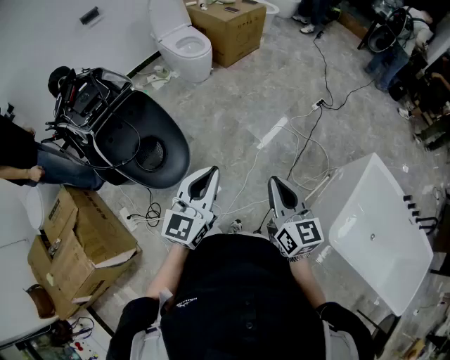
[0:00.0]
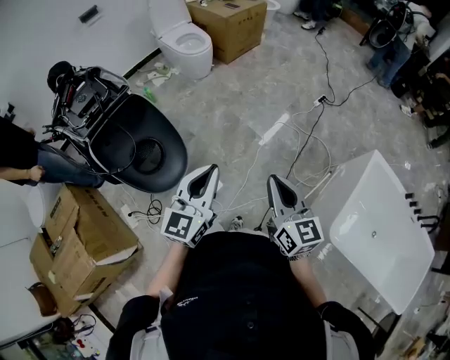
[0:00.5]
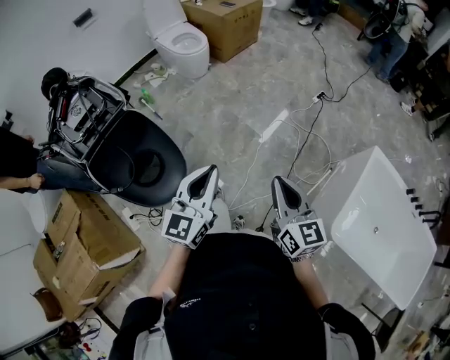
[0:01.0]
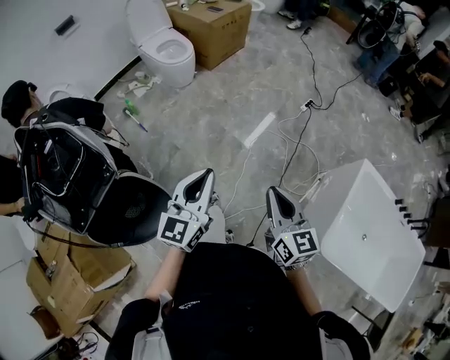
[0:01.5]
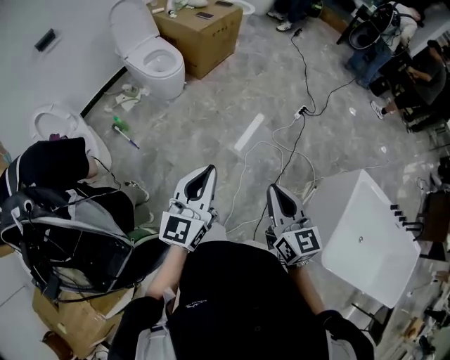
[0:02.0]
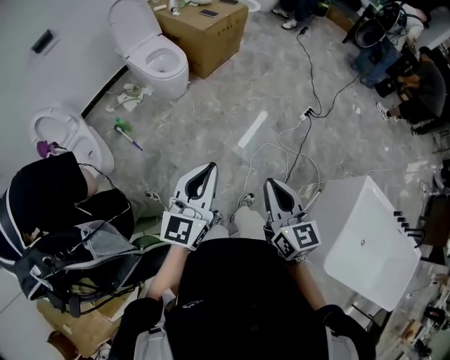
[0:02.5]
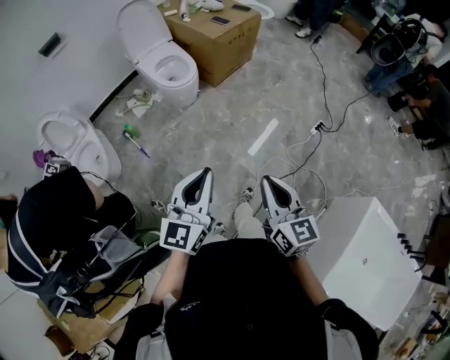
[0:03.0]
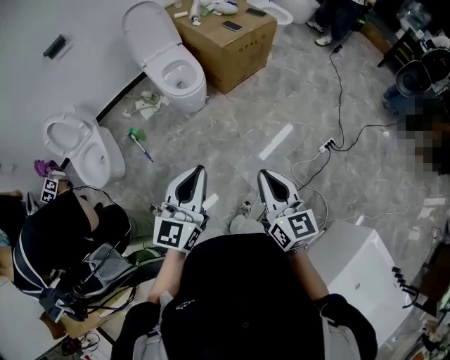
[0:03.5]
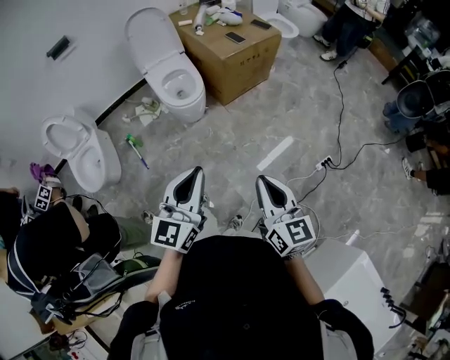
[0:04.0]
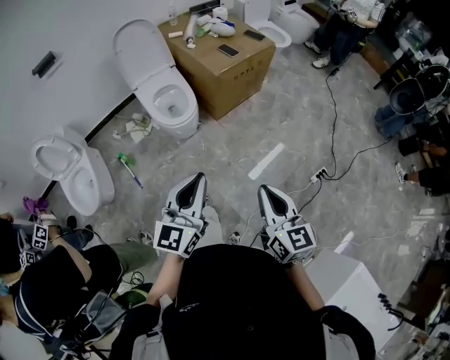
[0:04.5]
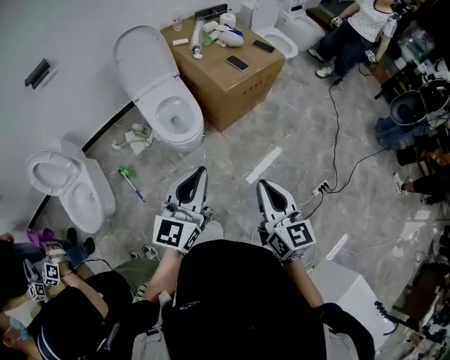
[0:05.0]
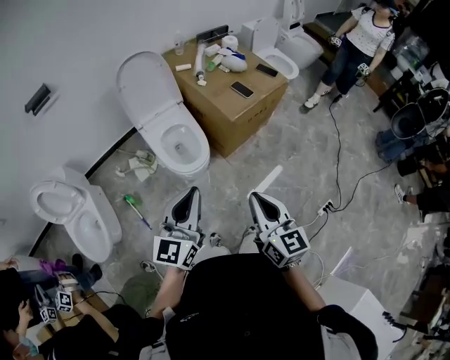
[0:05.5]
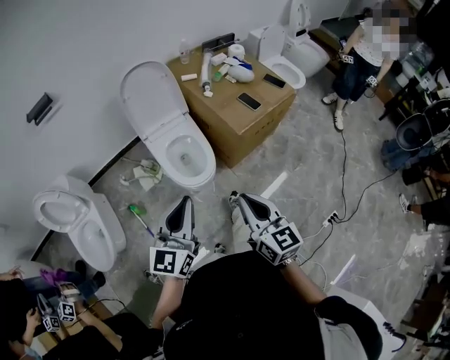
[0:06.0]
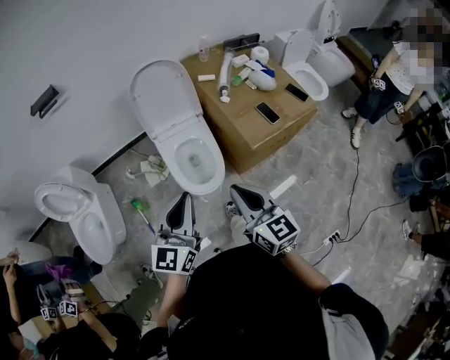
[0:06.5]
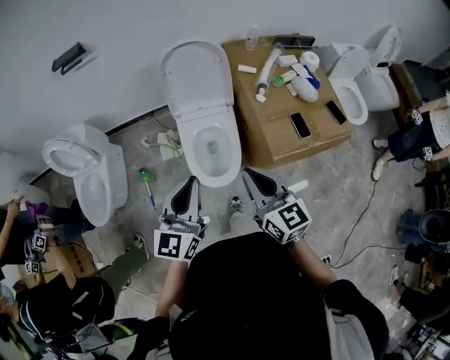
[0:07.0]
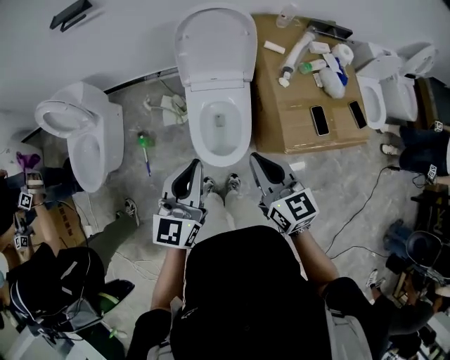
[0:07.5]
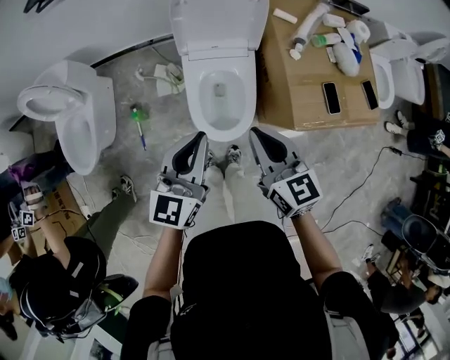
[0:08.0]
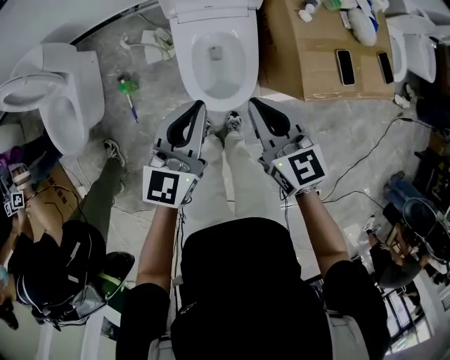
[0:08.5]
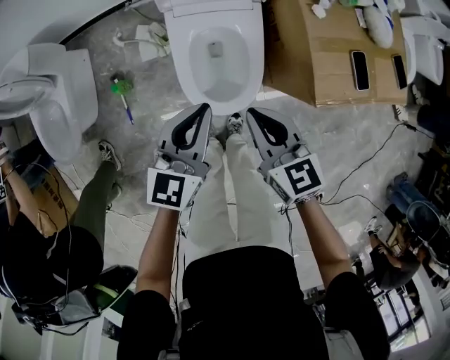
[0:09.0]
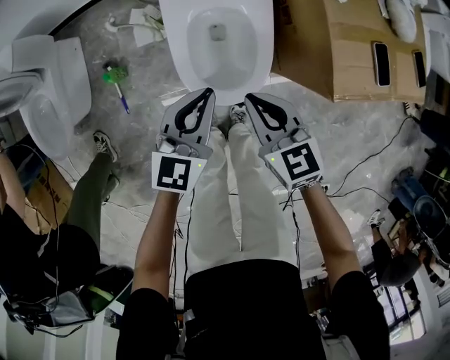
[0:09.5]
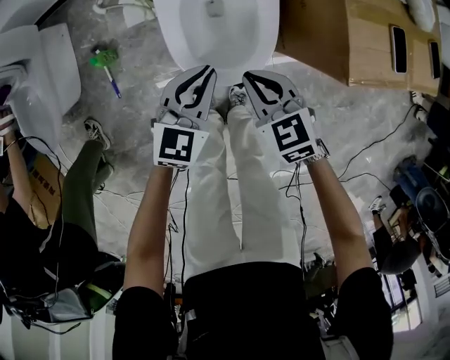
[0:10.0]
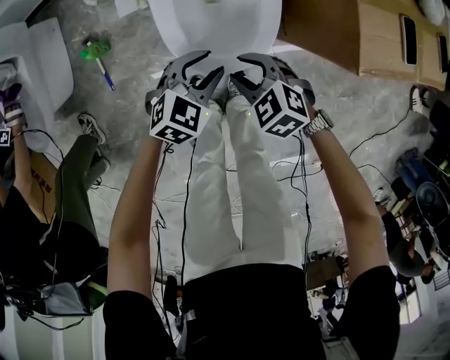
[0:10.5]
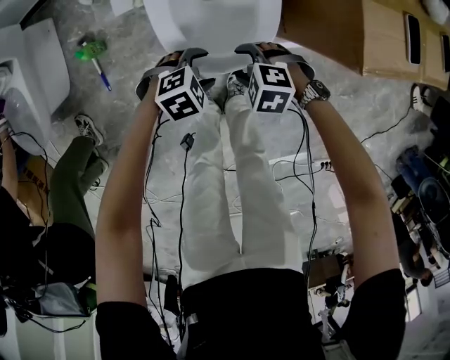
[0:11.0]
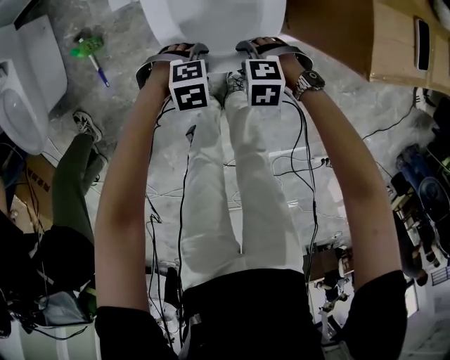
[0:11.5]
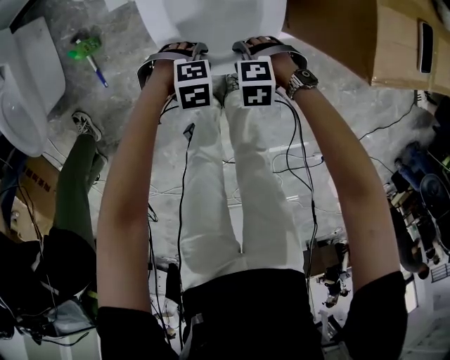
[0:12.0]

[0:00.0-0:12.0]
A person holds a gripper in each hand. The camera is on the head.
0:00.0 to 0:02.0: Both grippers travel together forward, about 25 cm.
0:02.0 to 0:04.0: Both grippers travel together forward, roughly 35 cm.
0:04.0 to 0:06.0: Both grippers are carried forward and to the left, approximately 40 cm.
0:06.0 to 0:08.0: The left gripper ends up roughly 30 cm from where it was, and turns by about 30 degrees; the right gripper ends up some 35 cm from where it was, and turns by roughly 30 degrees.
0:08.0 to 0:10.0: The two grippers go some 35 cm downward. The right gripper swivels approximately 30 degrees, while the left gripper swivels roughly 30 degrees.
0:10.0 to 0:12.0: The grippers both shift downward by about 25 cm. The left gripper points its fingers about 40 degrees further downward, and opens its fingers; the right gripper angles its fingers downward, by roughly 30 degrees, and opens.

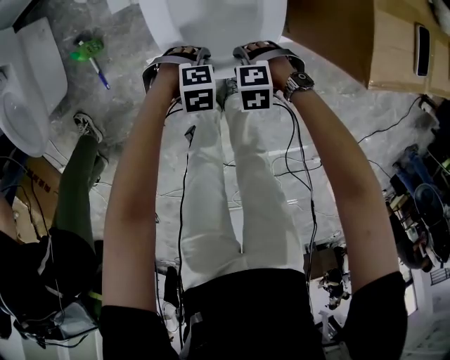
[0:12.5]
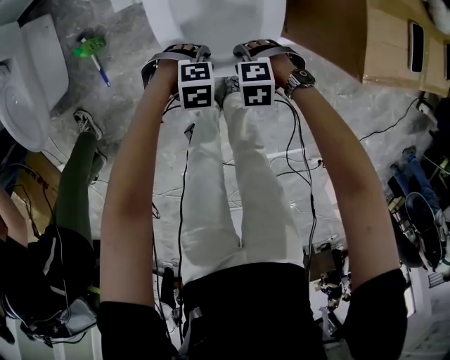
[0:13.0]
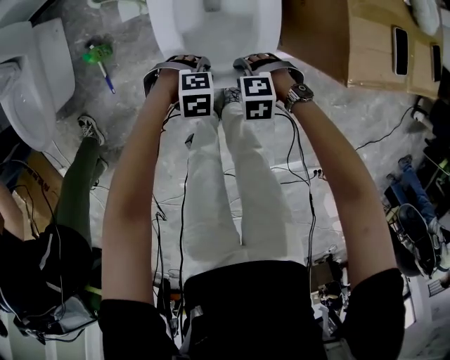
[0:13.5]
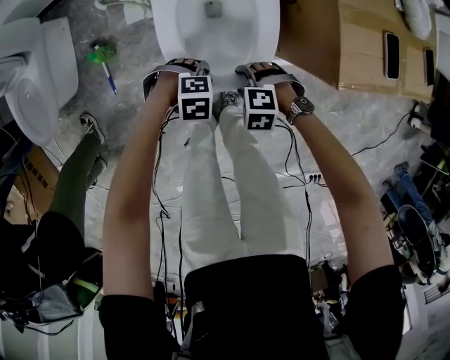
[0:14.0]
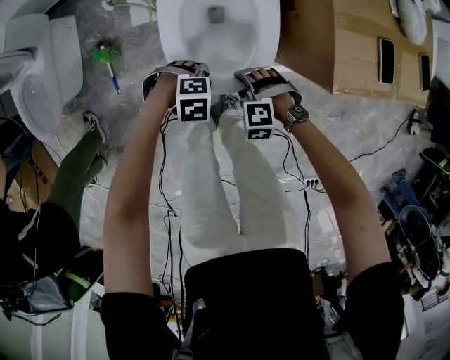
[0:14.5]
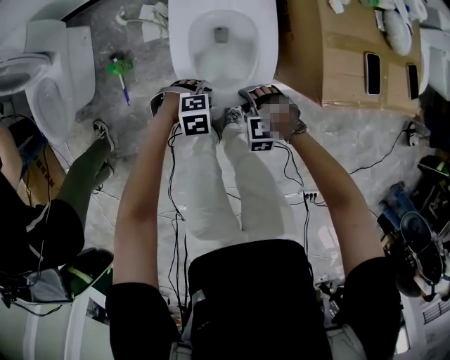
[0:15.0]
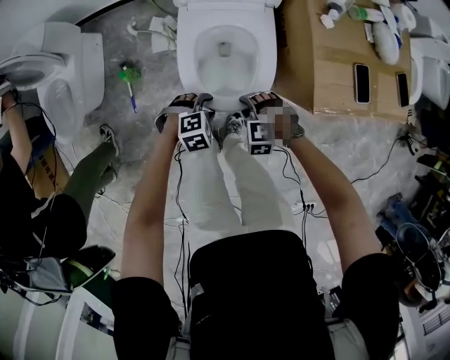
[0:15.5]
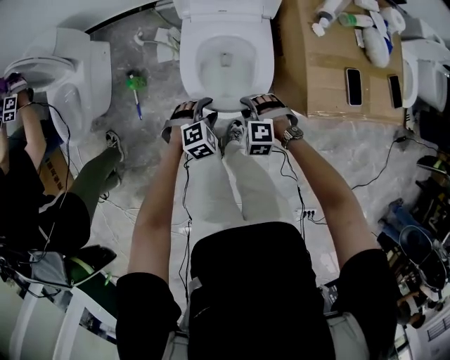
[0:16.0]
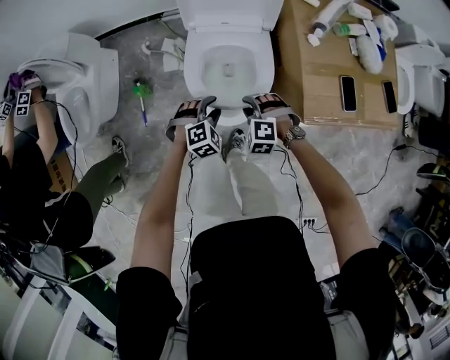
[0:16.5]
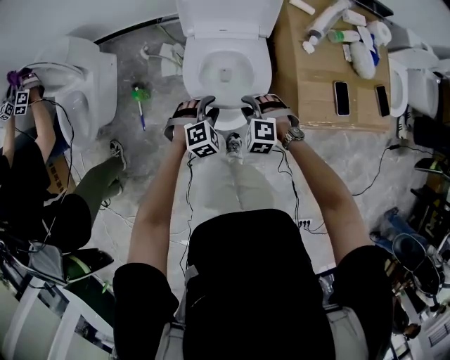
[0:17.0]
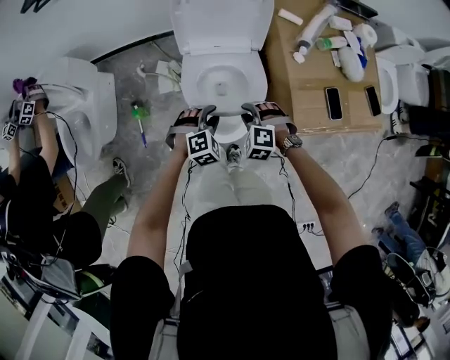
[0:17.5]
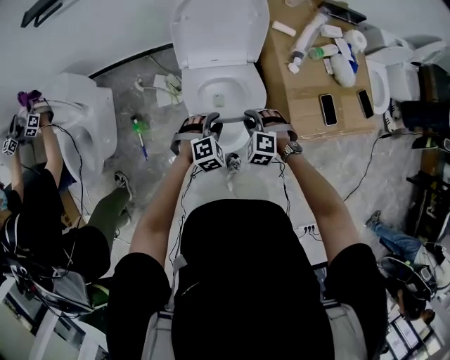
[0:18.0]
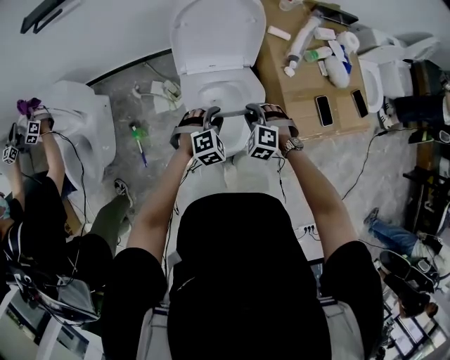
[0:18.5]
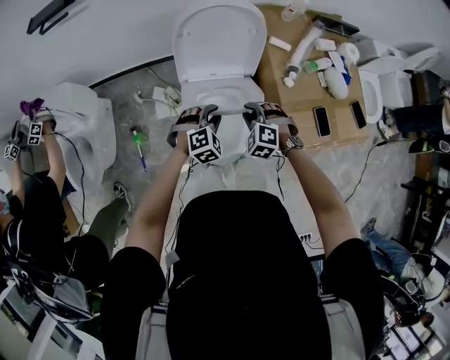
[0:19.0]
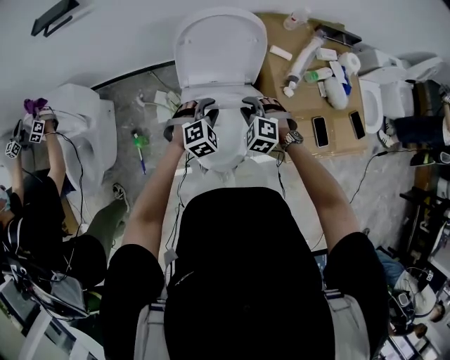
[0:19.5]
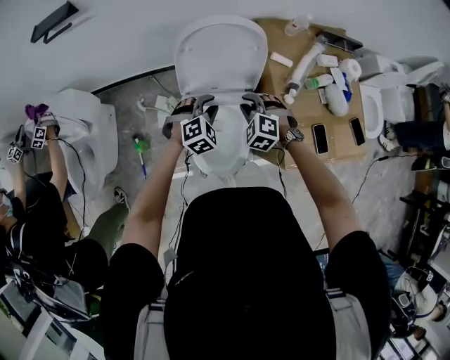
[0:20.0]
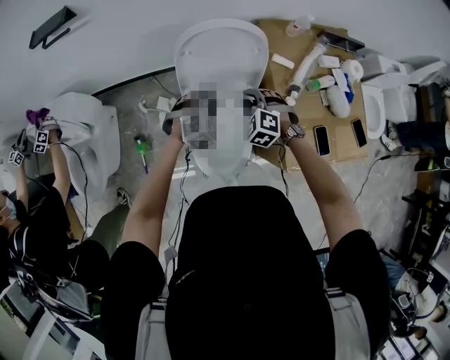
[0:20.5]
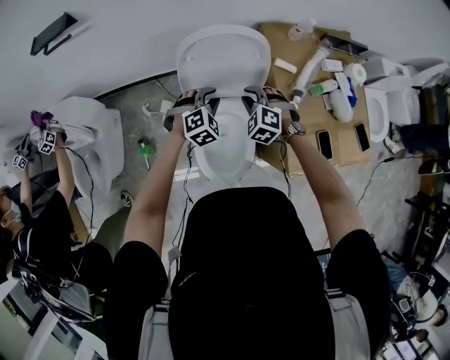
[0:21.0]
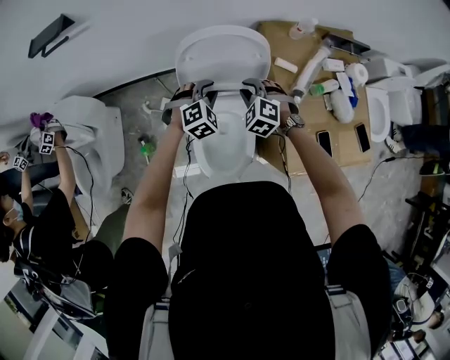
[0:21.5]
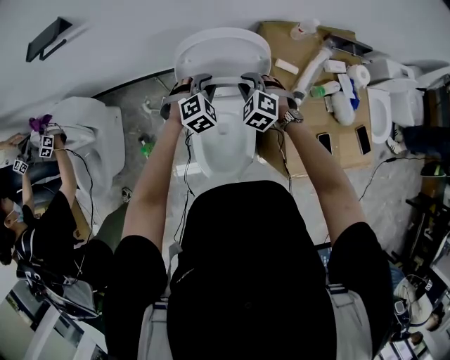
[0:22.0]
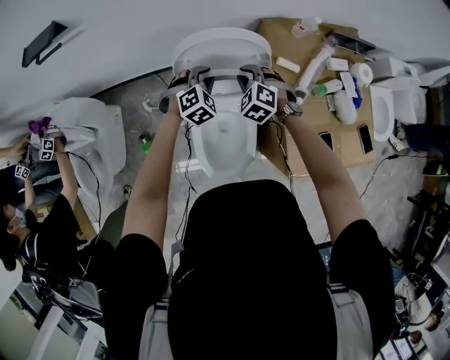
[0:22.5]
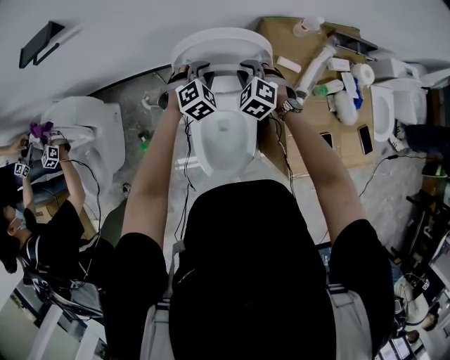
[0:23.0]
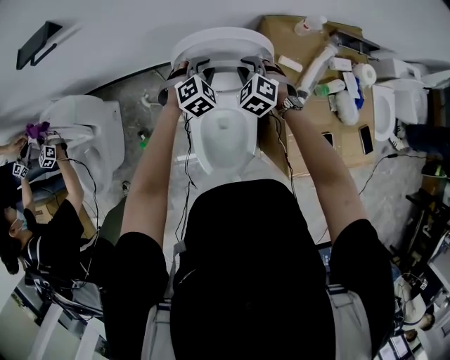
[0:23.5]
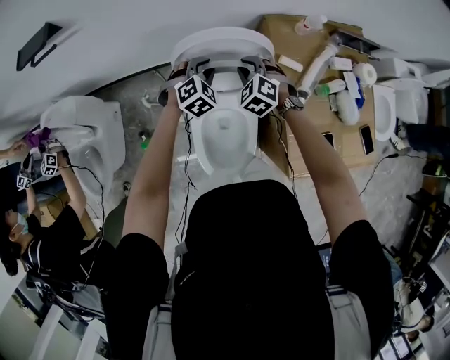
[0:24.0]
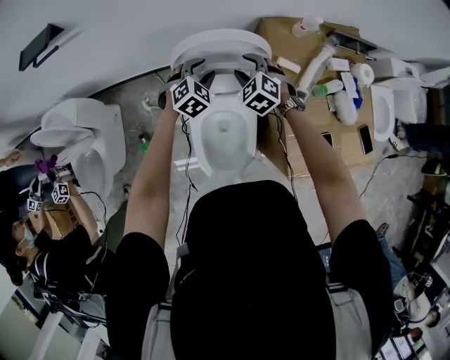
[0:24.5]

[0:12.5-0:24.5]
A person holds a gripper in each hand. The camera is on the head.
0:12.5 to 0:14.5: Both grippers travel together upward, some 10 cm. The right gripper turns by roughly 20 degrees.
0:14.5 to 0:16.5: Both grippers travel together upward, about 15 cm. The right gripper closes; the left gripper swivels approximately 40 degrees.
0:16.5 to 0:18.5: The two grippers go some 15 cm forward and upward.
0:18.5 to 0:20.5: The grippers both shift forward and upward by roughly 15 cm.
0:20.5 to 0:22.5: Both grippers move forward, some 10 cm.
0:22.5 to 0:24.5: The right gripper opens up.

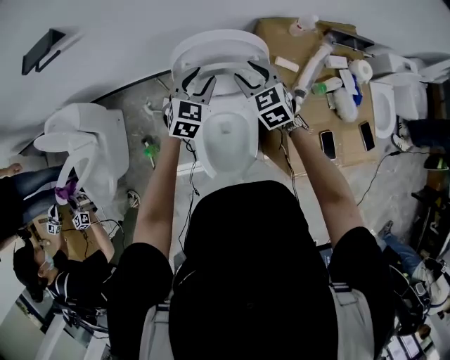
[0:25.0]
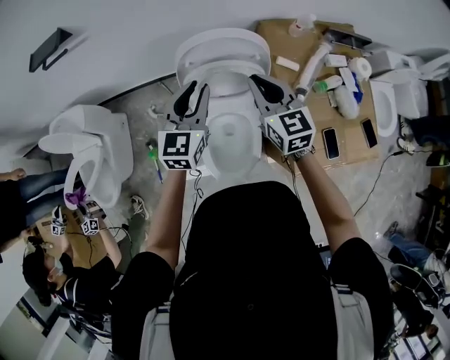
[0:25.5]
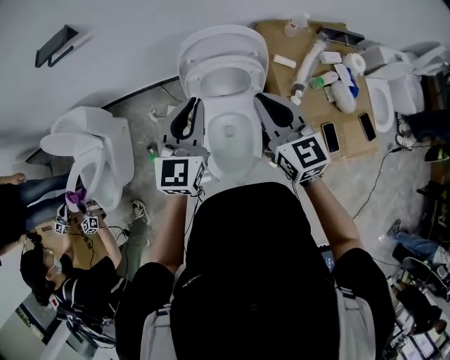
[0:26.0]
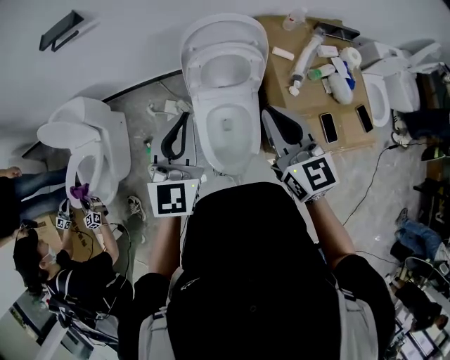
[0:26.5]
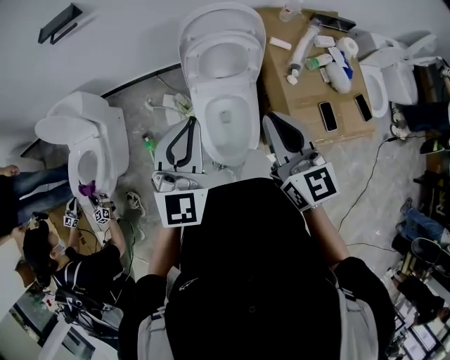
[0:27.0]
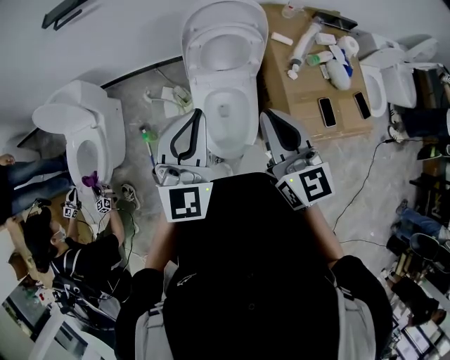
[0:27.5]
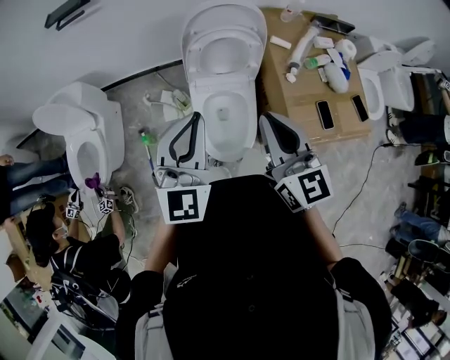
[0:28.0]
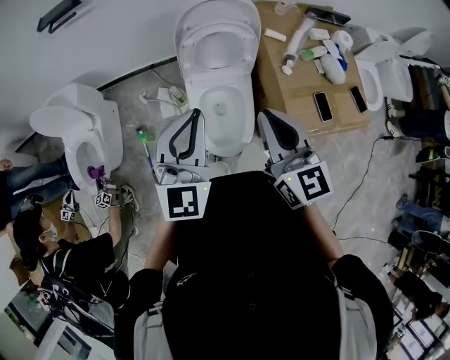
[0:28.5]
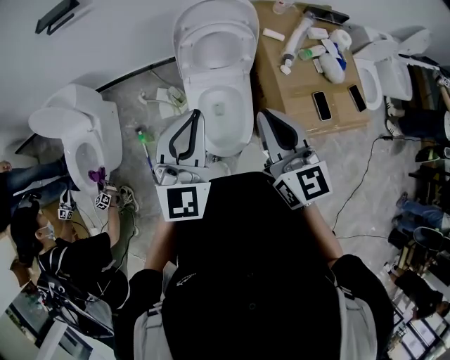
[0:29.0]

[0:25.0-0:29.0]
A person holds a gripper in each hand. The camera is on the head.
0:25.0 to 0:27.0: The grippers both shift backward and upward by about 35 cm. The right gripper changes its angle by approximately 40 degrees, and closes up. The left gripper rotates about 30 degrees, and closes its fingers.
0:27.0 to 0:29.0: The grippers stay close to where they were, moving slightly.
